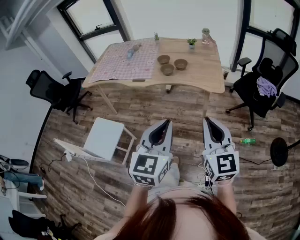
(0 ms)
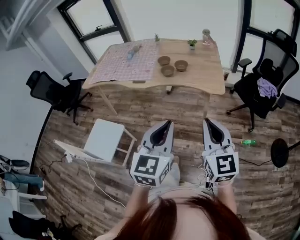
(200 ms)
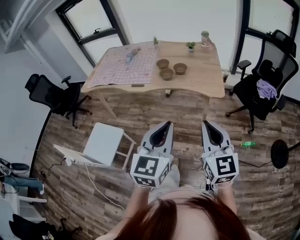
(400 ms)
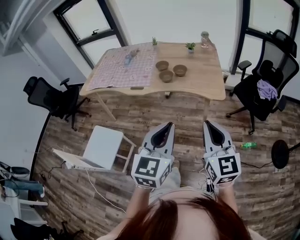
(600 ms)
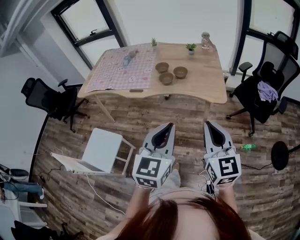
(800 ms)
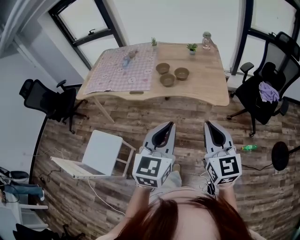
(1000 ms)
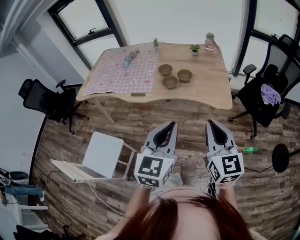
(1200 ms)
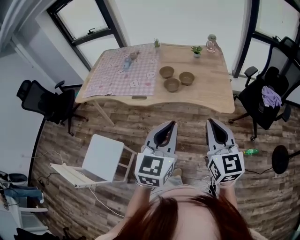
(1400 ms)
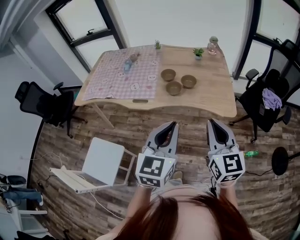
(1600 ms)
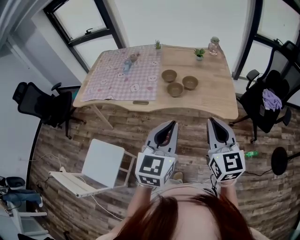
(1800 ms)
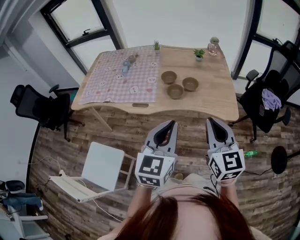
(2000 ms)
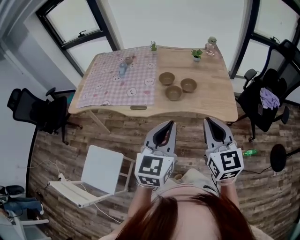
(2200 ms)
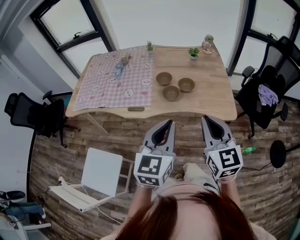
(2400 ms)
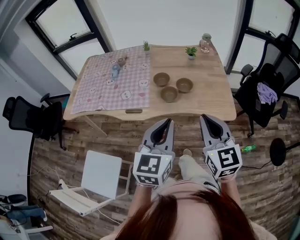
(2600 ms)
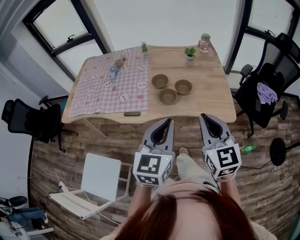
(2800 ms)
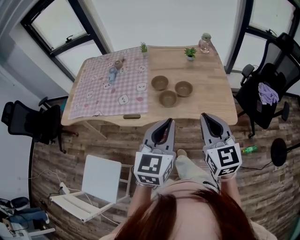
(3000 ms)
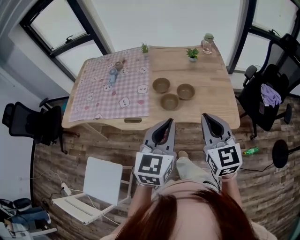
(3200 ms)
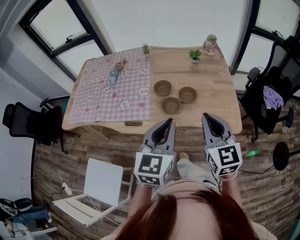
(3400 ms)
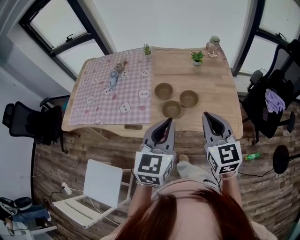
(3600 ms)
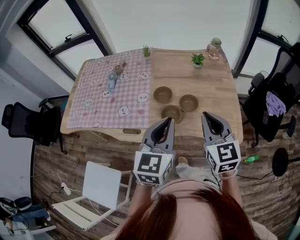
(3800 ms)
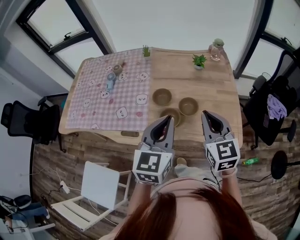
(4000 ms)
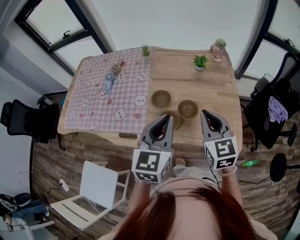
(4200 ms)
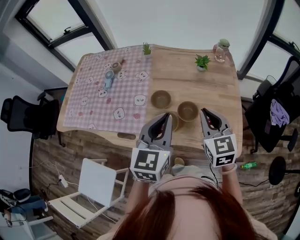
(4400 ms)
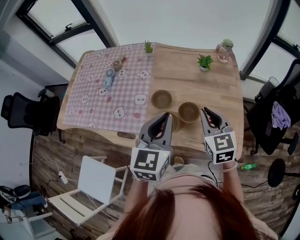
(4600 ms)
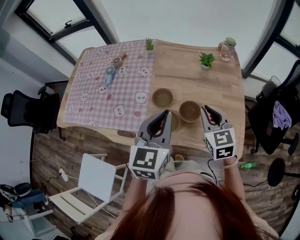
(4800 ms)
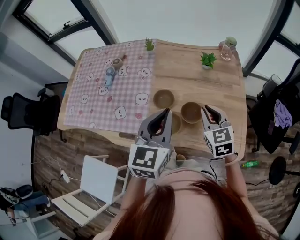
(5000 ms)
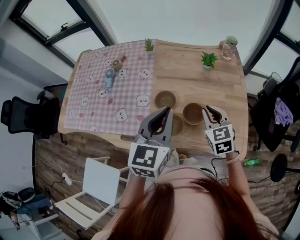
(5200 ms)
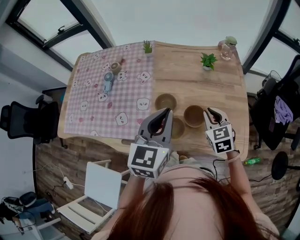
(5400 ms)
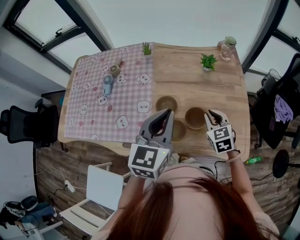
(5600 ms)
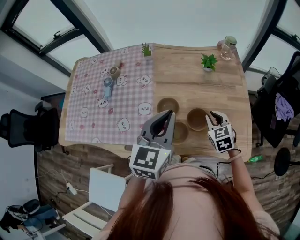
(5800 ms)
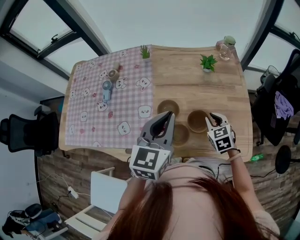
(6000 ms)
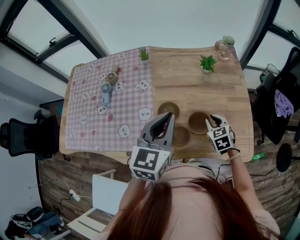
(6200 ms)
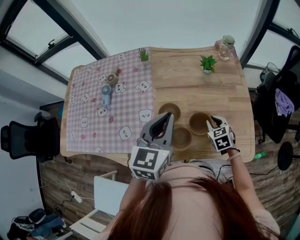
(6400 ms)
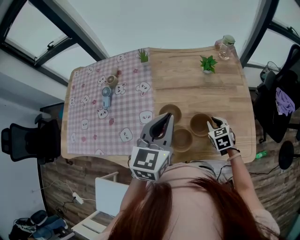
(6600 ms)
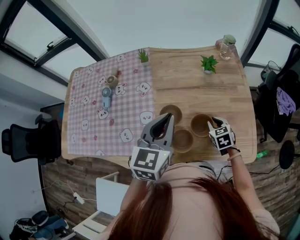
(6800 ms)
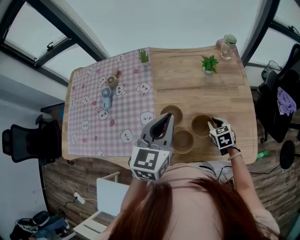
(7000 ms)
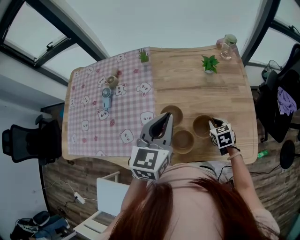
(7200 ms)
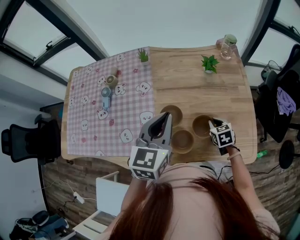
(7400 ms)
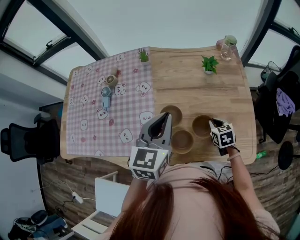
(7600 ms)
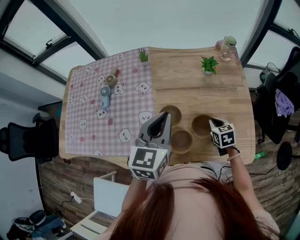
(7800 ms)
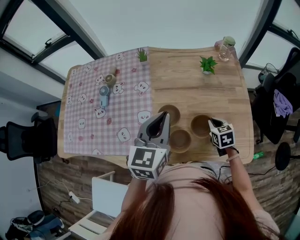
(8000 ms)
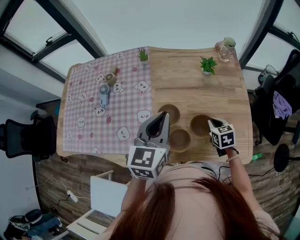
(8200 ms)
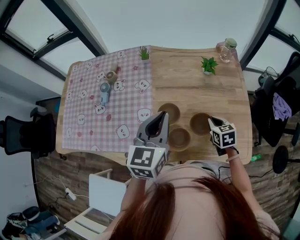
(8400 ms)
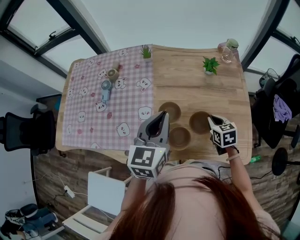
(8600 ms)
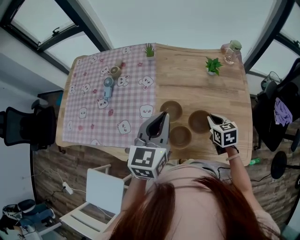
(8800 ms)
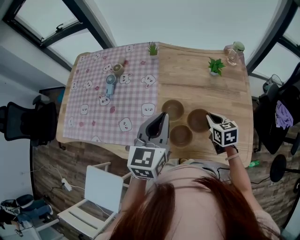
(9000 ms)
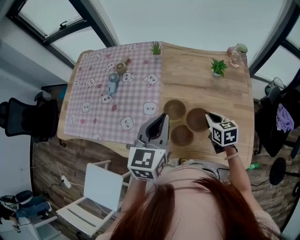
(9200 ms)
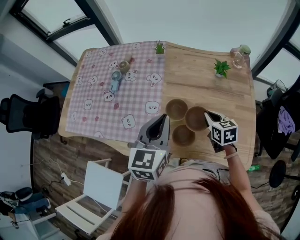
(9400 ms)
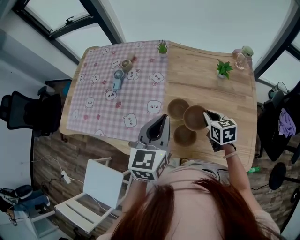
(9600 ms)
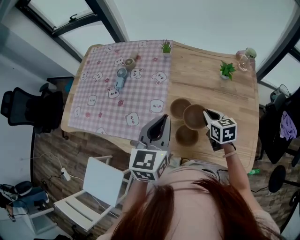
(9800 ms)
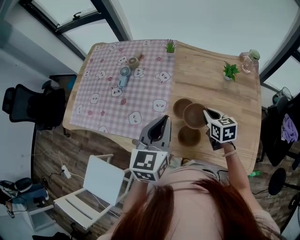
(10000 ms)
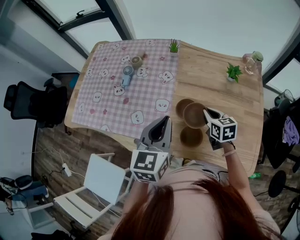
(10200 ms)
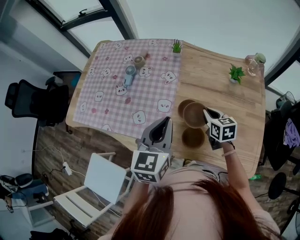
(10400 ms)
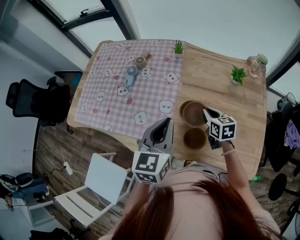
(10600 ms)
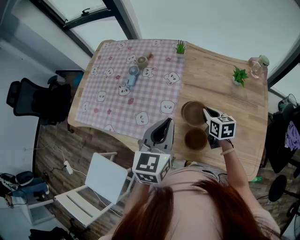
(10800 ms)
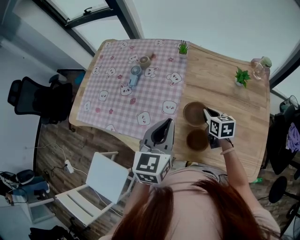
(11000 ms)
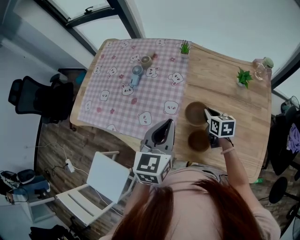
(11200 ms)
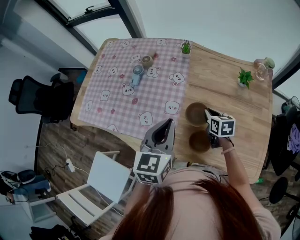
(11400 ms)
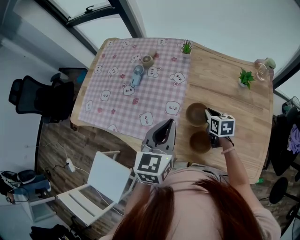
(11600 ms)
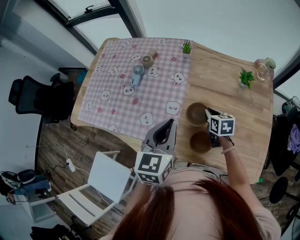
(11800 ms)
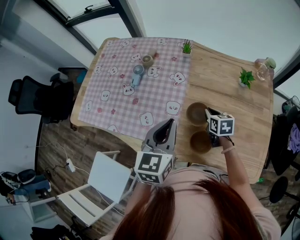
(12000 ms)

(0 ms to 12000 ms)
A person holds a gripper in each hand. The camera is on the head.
0 ms - 1600 ms: The two grippers go roughly 20 cm forward.
1600 ms - 3000 ms: The grippers both shift forward by some 15 cm.
3000 ms - 4400 ms: Both grippers move forward, roughly 25 cm.
4400 ms - 6000 ms: The right gripper travels downward and forward by roughly 20 cm, and rotates some 20 degrees. Meanwhile the left gripper moves forward, about 10 cm.
6000 ms - 7600 ms: The right gripper travels downward by roughly 5 cm; the left gripper ends up some 5 cm from where it was.
7600 ms - 9000 ms: The right gripper shifts approximately 5 cm upward.
9000 ms - 10400 ms: The right gripper travels to the left and forward by about 10 cm; the left gripper goes about 5 cm to the left.
10400 ms - 12000 ms: The right gripper travels downward by roughly 5 cm.

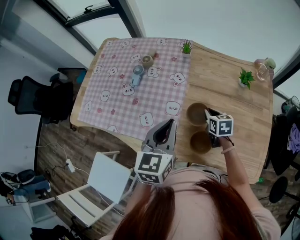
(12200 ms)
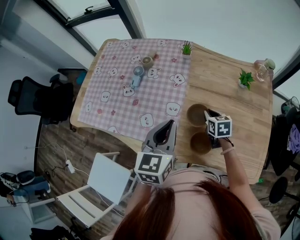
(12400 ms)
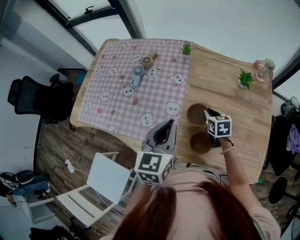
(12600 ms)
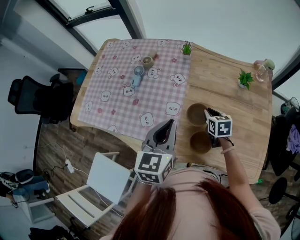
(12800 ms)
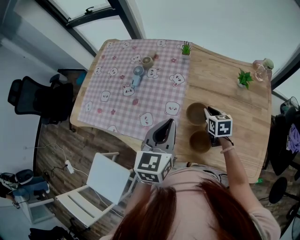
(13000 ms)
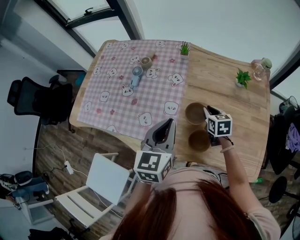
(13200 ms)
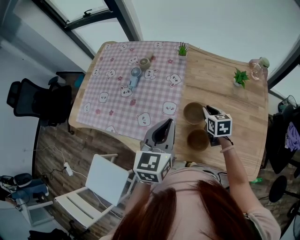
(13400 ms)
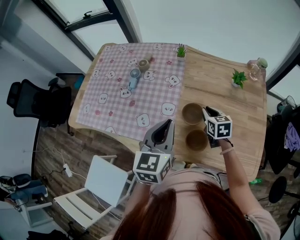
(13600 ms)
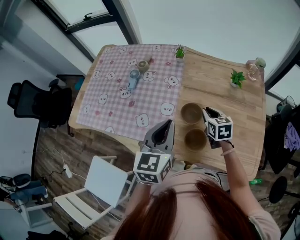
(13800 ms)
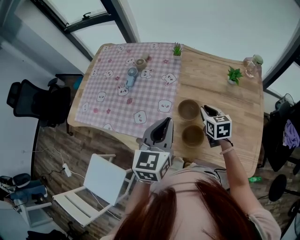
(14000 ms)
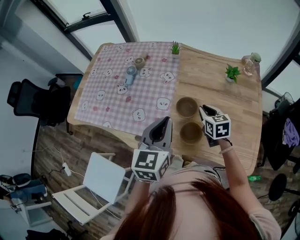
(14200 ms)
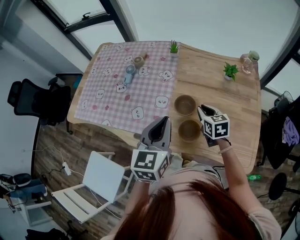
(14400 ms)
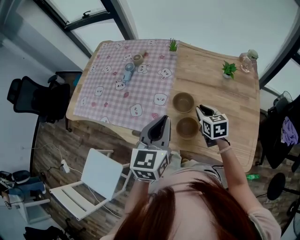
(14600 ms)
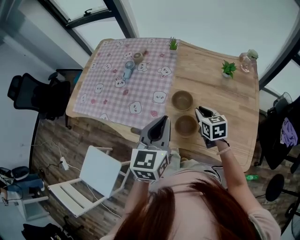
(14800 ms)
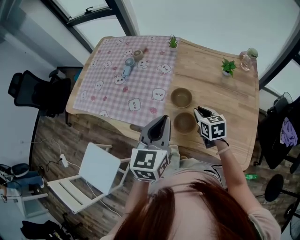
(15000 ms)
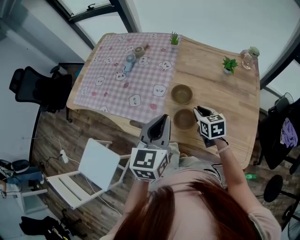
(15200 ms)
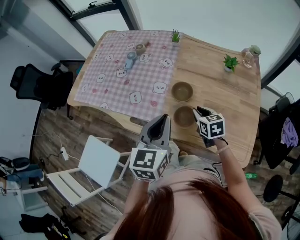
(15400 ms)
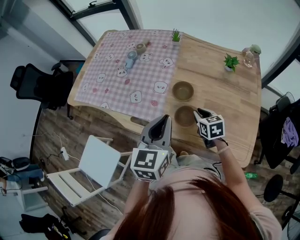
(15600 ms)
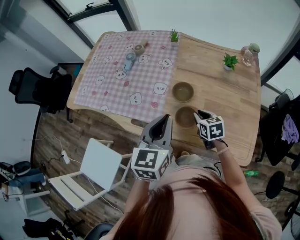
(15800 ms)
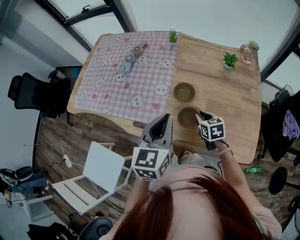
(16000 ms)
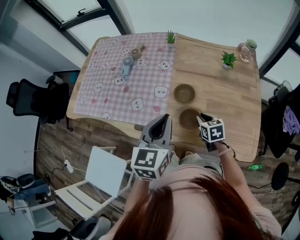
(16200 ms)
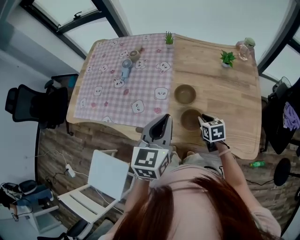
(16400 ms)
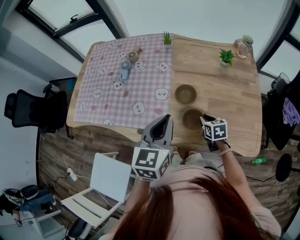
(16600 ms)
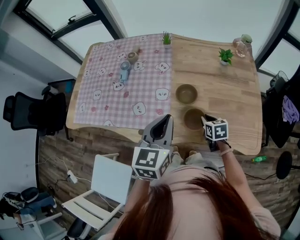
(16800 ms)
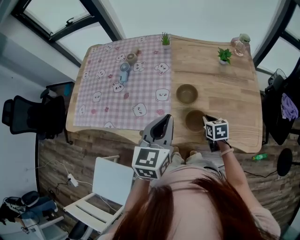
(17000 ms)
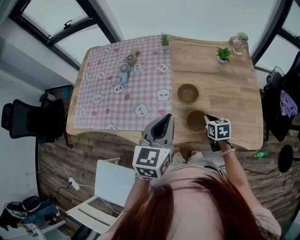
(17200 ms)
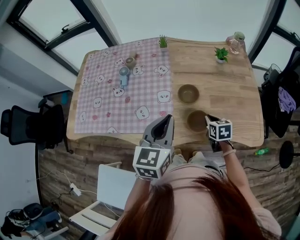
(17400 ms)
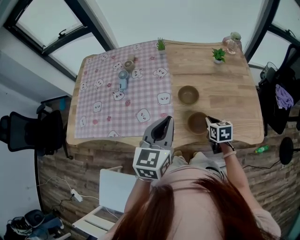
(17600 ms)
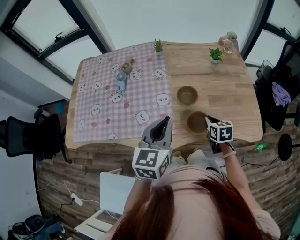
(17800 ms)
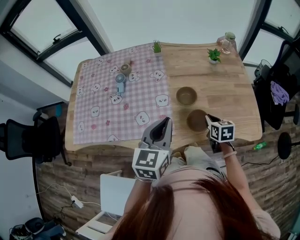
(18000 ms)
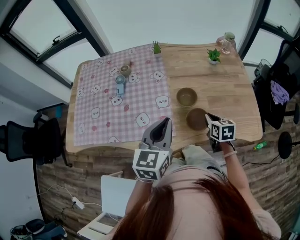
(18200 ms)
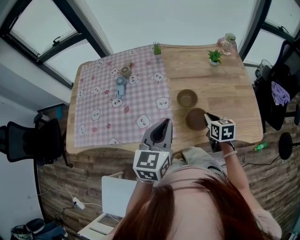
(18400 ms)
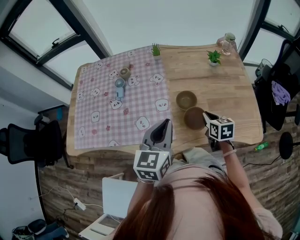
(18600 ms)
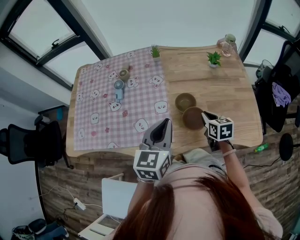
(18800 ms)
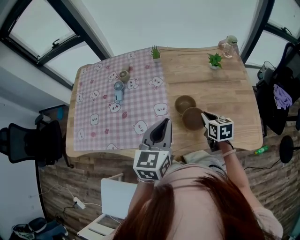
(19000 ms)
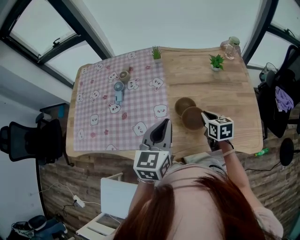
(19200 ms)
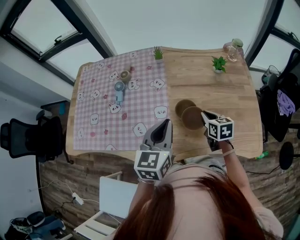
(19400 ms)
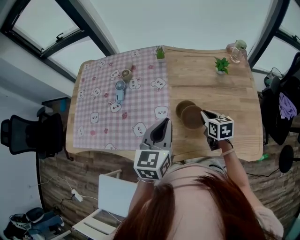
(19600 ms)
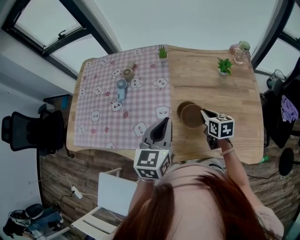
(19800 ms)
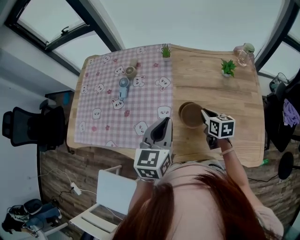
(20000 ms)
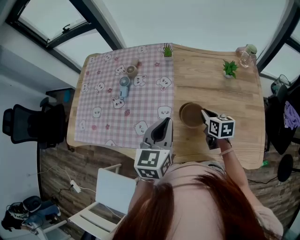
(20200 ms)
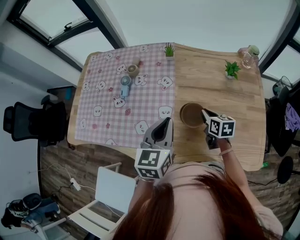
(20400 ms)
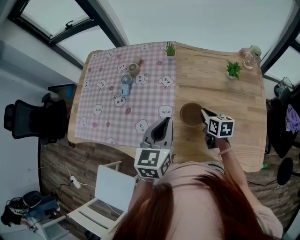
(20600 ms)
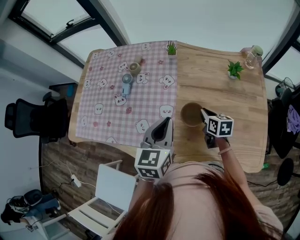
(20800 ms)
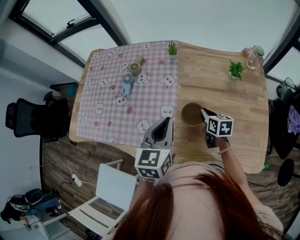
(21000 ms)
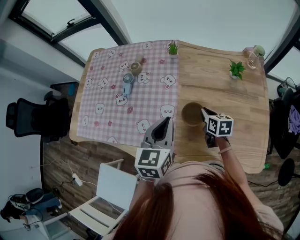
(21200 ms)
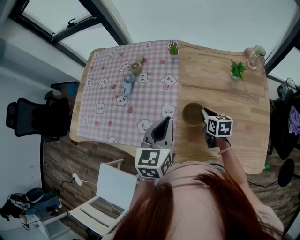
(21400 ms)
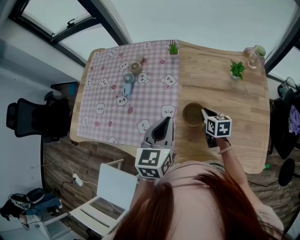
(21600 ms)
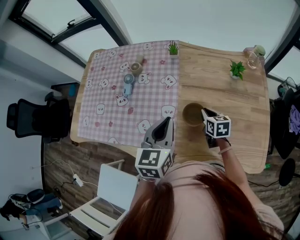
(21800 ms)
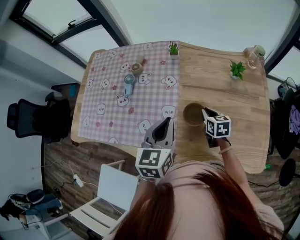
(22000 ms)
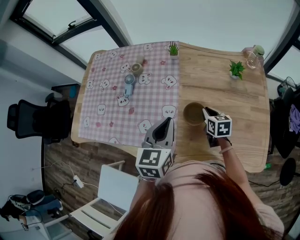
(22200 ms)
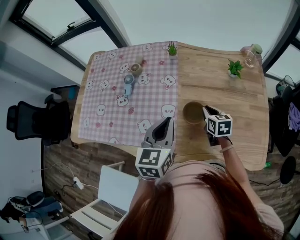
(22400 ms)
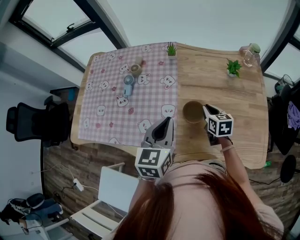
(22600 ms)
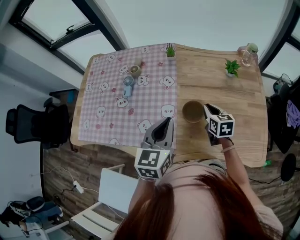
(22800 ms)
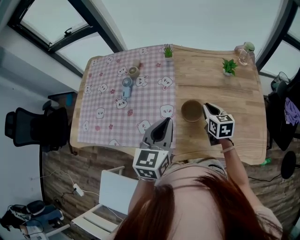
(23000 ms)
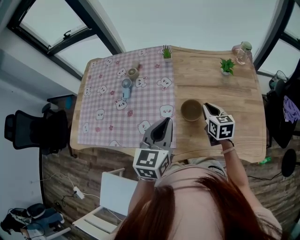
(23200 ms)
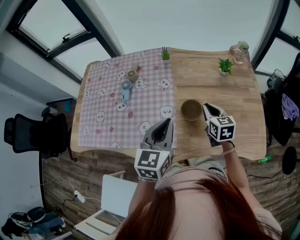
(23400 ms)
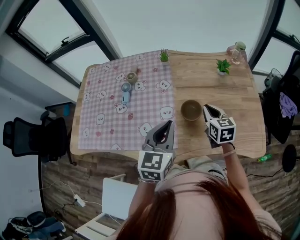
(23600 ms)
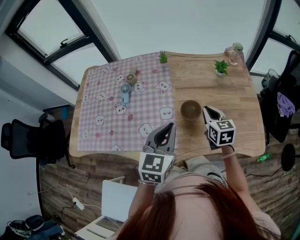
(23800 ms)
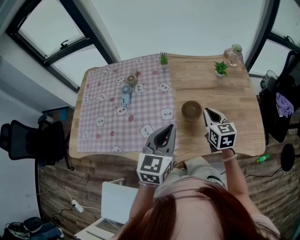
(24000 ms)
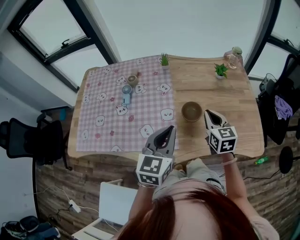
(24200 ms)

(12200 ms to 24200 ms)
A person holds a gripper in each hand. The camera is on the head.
12200 ms - 13800 ms: The right gripper travels upward by about 5 cm.
13800 ms - 15200 ms: Both grippers move backward, approximately 10 cm.
15200 ms - 16600 ms: The right gripper goes some 5 cm downward.
16600 ms - 18200 ms: The right gripper heads upward, covering roughly 5 cm; the left gripper heads to the left, covering about 5 cm.
18200 ms - 19800 ms: The grippers both shift forward by some 10 cm.
19800 ms - 21200 ms: The right gripper ends up some 5 cm from where it was.
21200 ms - 22600 ms: The grippers stay close to where they were, moving slightly.
22600 ms - 24200 ms: The right gripper shifts about 15 cm upward and backward, and rotates about 20 degrees. Meanwhile the left gripper heads backward, covering roughly 5 cm.
